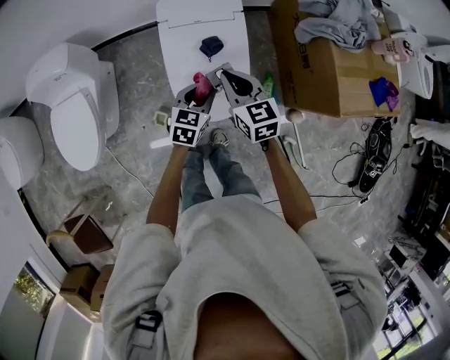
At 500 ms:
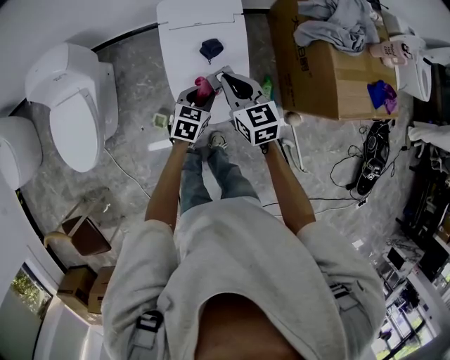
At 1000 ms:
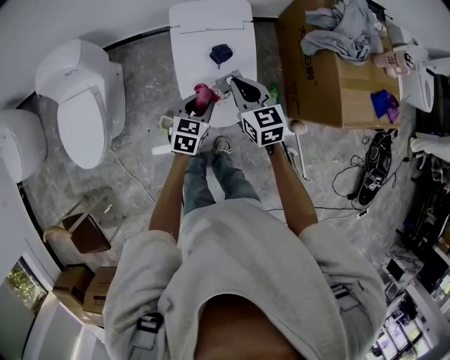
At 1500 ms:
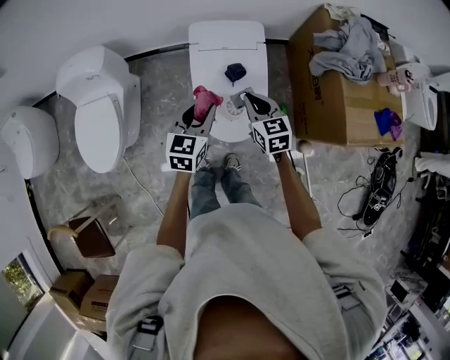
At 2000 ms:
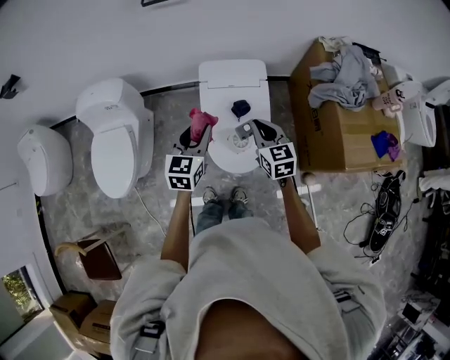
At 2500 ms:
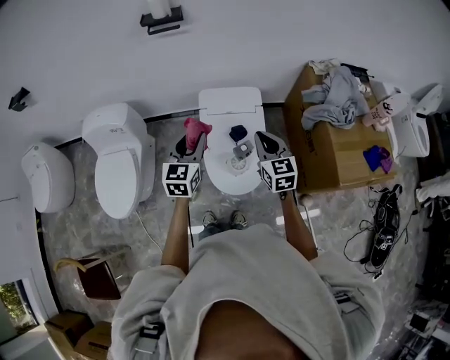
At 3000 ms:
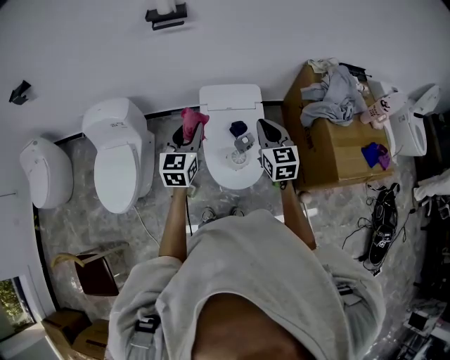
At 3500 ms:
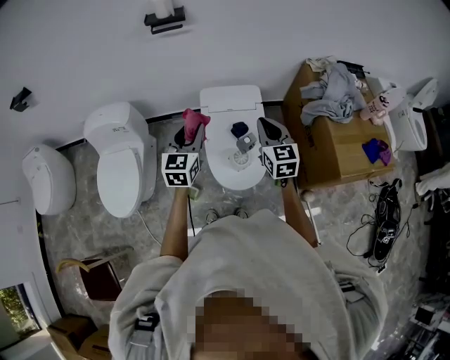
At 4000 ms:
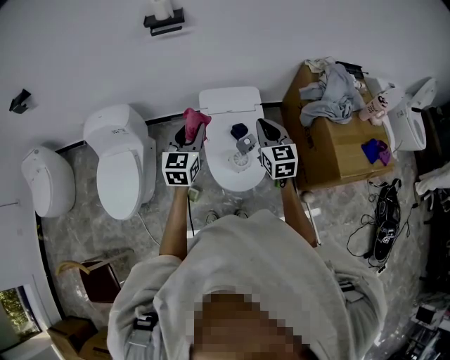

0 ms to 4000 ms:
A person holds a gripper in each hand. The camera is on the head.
0 ms to 2000 ms: The right gripper travels upward by approximately 5 cm, while the left gripper shifts about 20 cm upward and to the left, and swivels about 20 degrees.
2000 ms to 4000 ms: Both grippers move upward, some 10 cm.

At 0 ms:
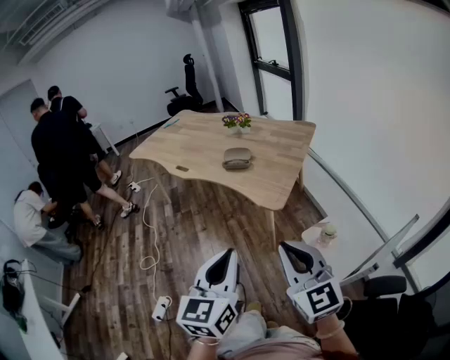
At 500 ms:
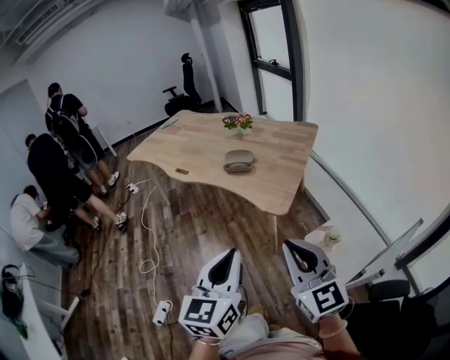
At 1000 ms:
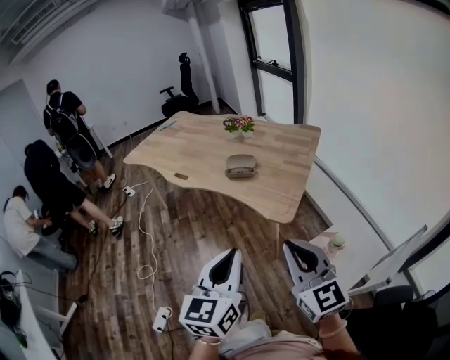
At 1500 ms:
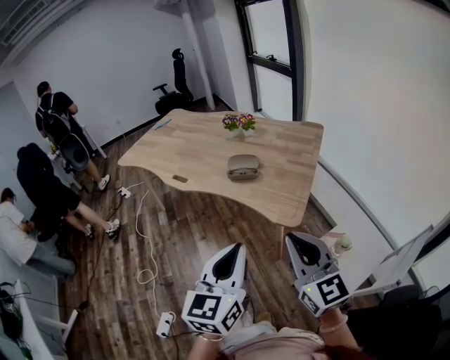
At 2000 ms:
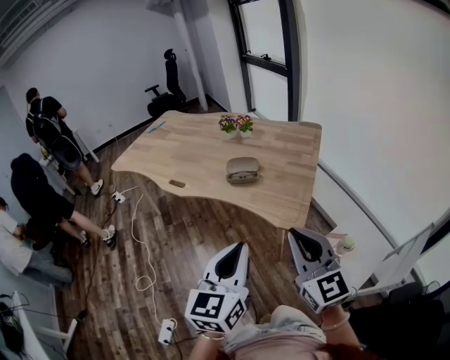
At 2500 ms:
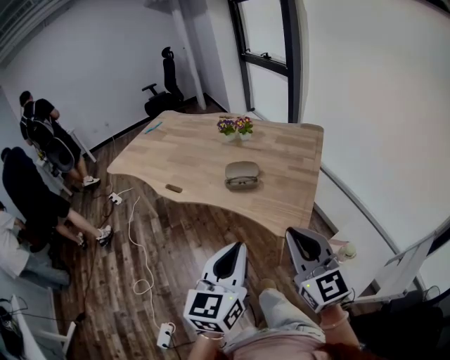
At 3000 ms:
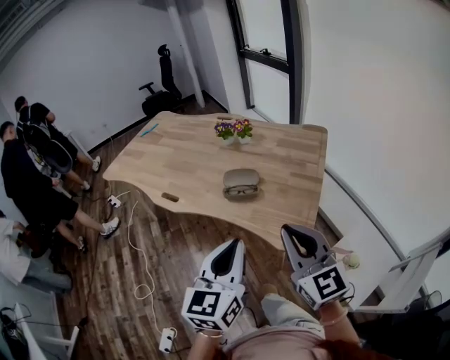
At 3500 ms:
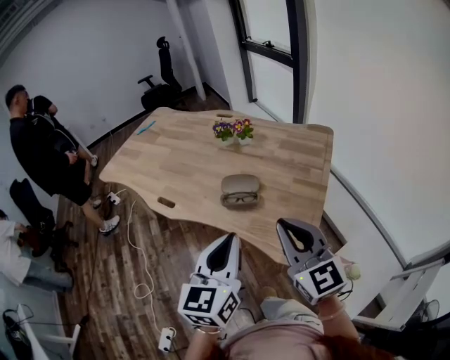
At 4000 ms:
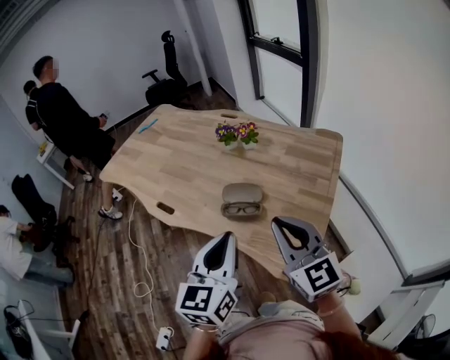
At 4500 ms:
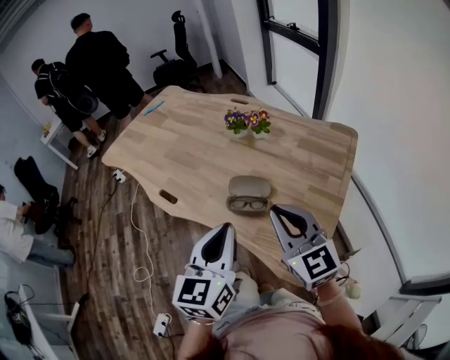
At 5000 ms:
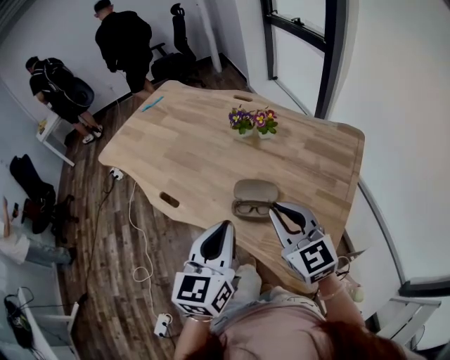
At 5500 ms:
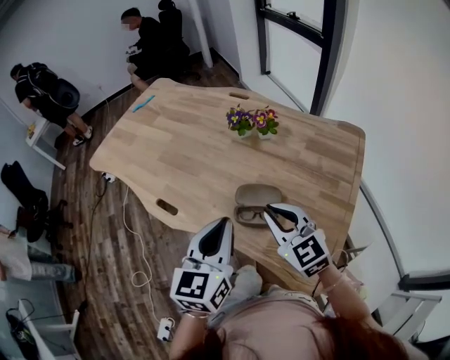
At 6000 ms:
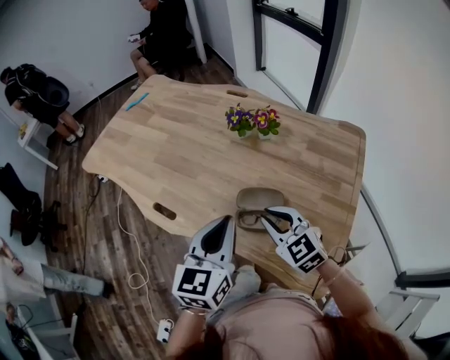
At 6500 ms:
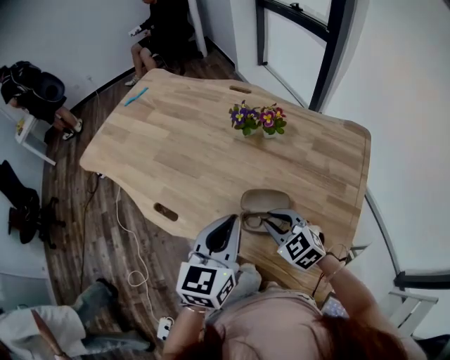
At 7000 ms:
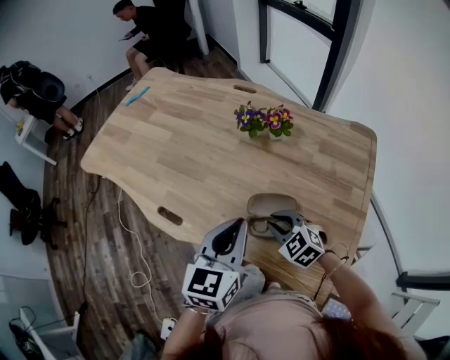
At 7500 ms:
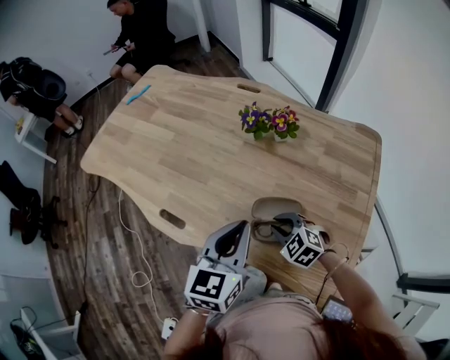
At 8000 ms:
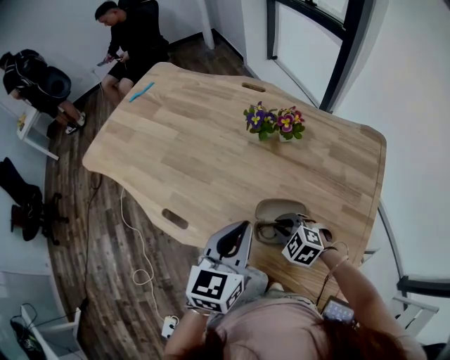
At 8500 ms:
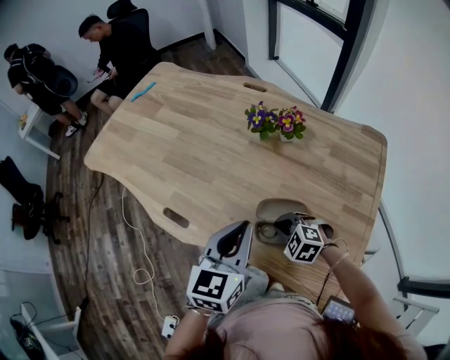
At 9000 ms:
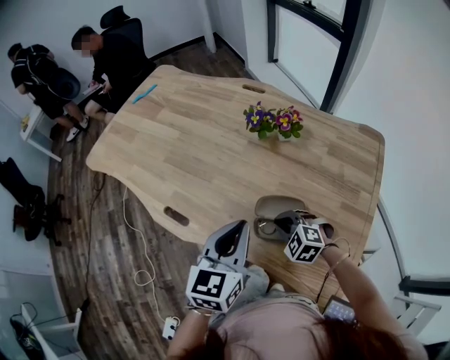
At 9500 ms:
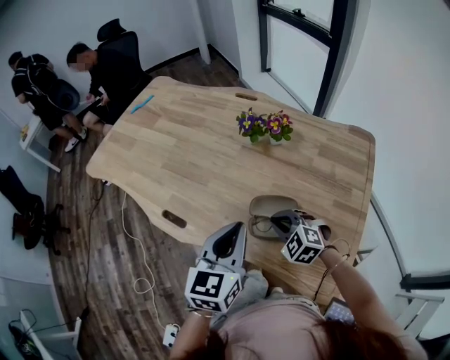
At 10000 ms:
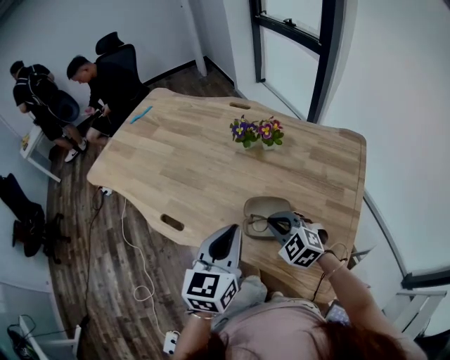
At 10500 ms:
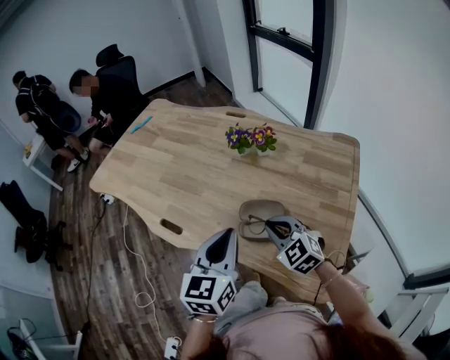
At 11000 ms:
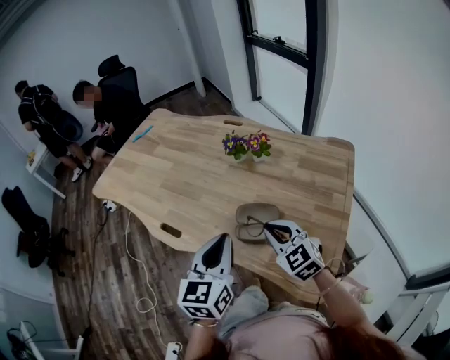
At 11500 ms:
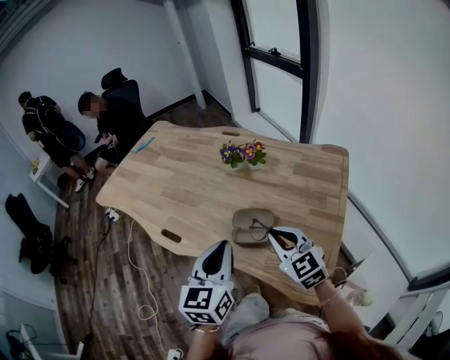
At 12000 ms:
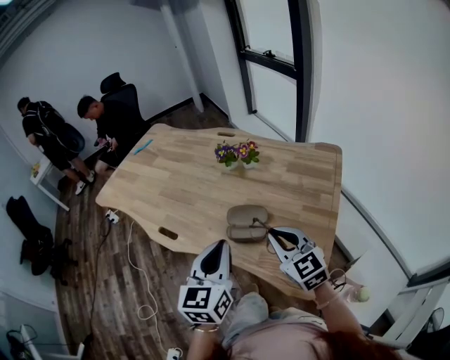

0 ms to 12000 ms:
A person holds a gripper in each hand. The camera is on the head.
0 ms to 2000 ms: The grippers both shift forward by some 20 cm.
2000 ms to 4000 ms: Both grippers travel together forward, approximately 30 cm.
4000 ms to 6000 ms: The left gripper goes roughly 15 cm forward. Meanwhile the right gripper shifts some 25 cm forward, downward and to the left, and turns by about 30 degrees.
6000 ms to 8000 ms: The right gripper travels downward by about 15 cm, and turns by approximately 30 degrees. Meanwhile the left gripper travels forward by approximately 5 cm.
8000 ms to 10000 ms: The right gripper travels upward by about 10 cm. Meanwhile the left gripper heads backward, covering some 5 cm.
10000 ms to 12000 ms: The right gripper travels upward, backward and to the right by approximately 20 cm, and rotates roughly 30 degrees. The left gripper moves backward, some 10 cm.

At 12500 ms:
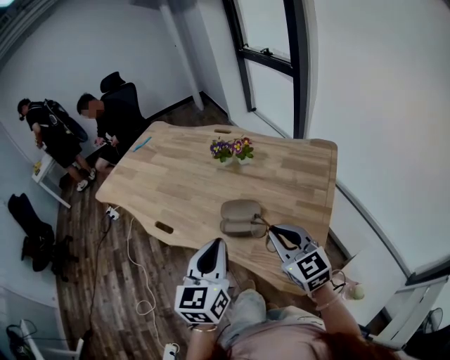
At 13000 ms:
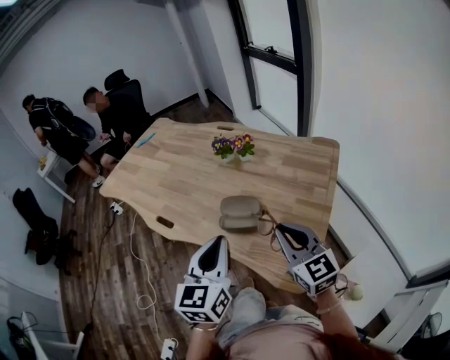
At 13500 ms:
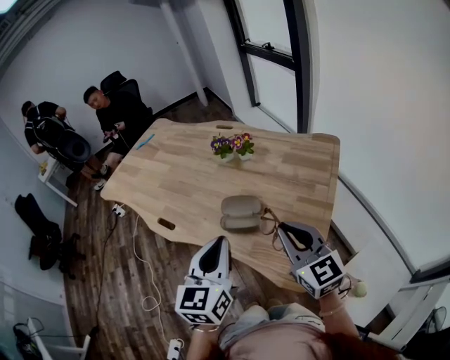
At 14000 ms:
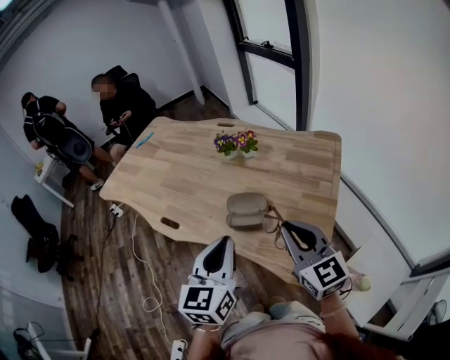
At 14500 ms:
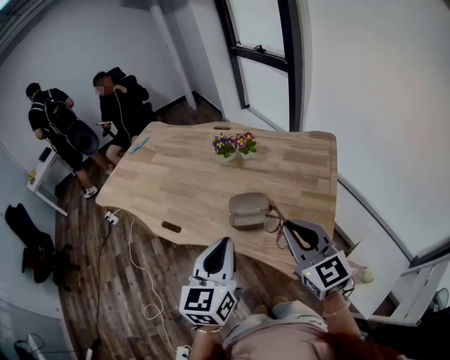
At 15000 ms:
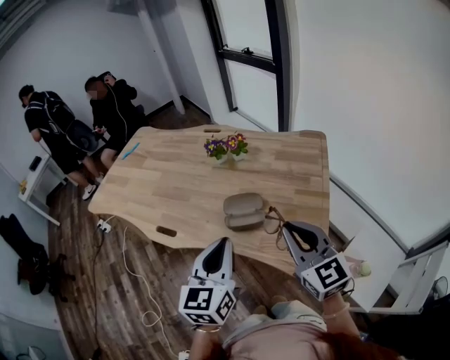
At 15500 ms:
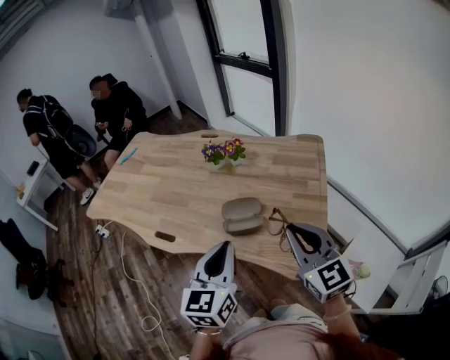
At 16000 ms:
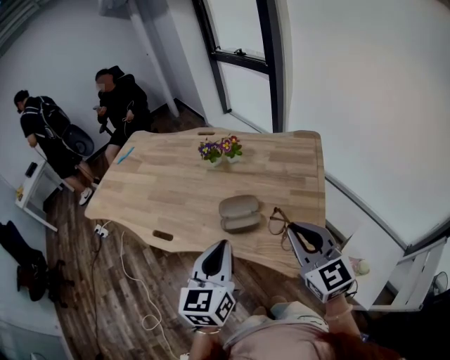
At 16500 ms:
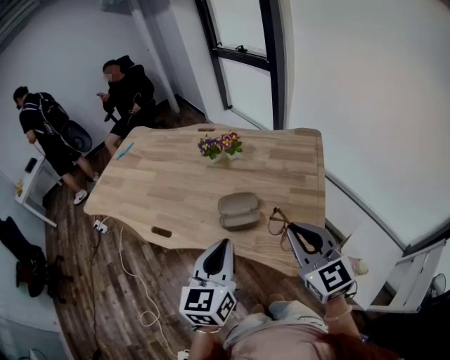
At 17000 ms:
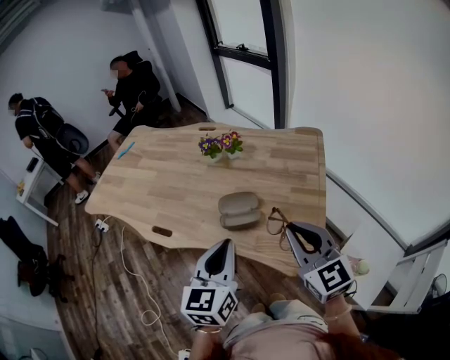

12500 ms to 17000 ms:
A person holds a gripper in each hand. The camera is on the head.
12500 ms to 14500 ms: The right gripper goes roughly 5 cm upward.
14500 ms to 17000 ms: The grippers move only a little.

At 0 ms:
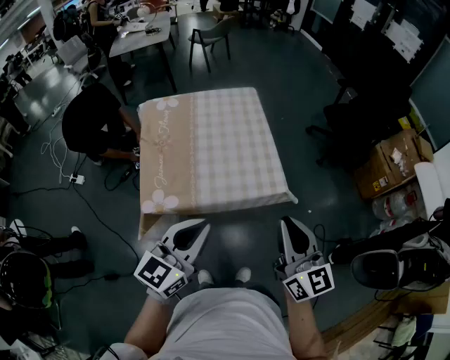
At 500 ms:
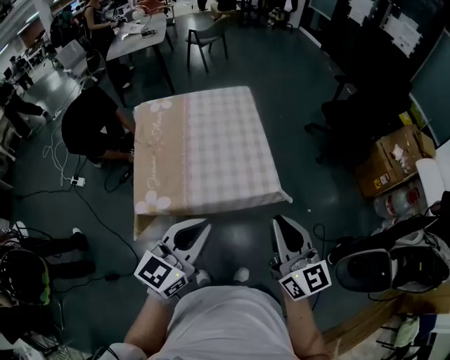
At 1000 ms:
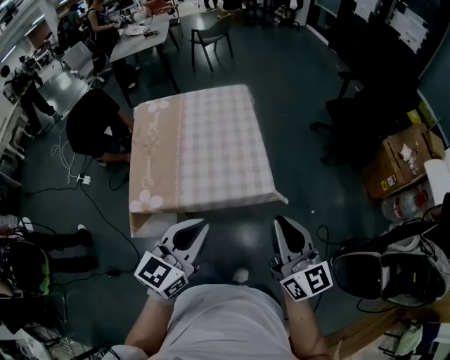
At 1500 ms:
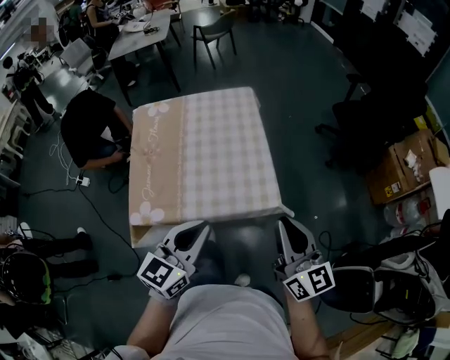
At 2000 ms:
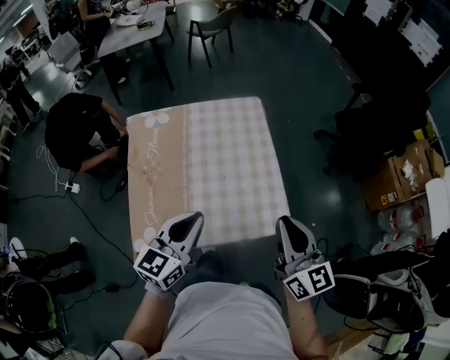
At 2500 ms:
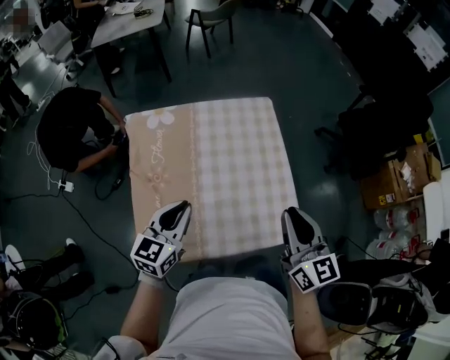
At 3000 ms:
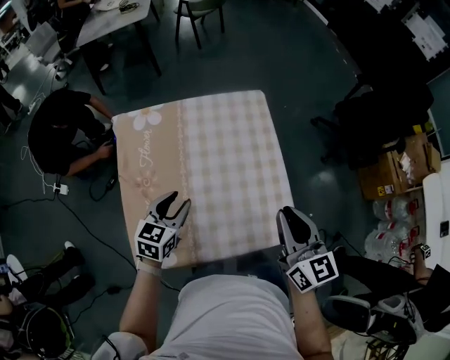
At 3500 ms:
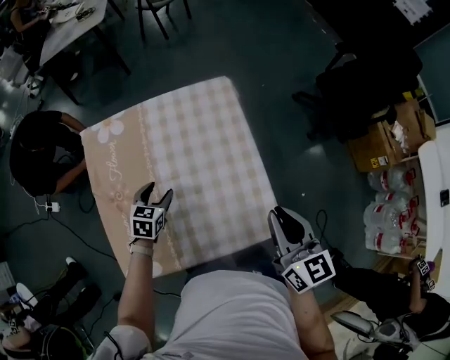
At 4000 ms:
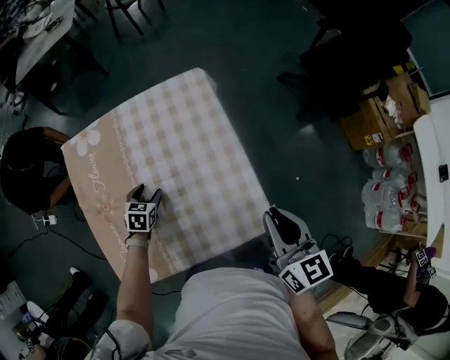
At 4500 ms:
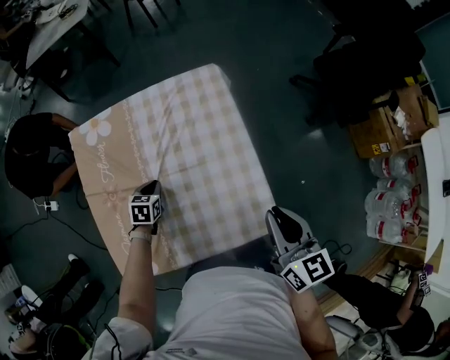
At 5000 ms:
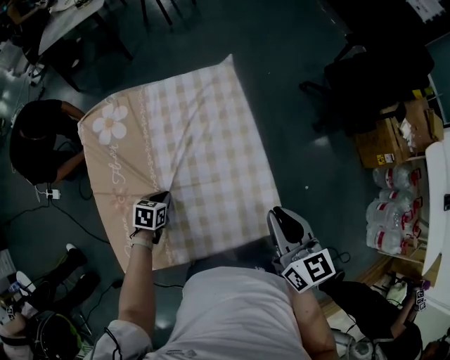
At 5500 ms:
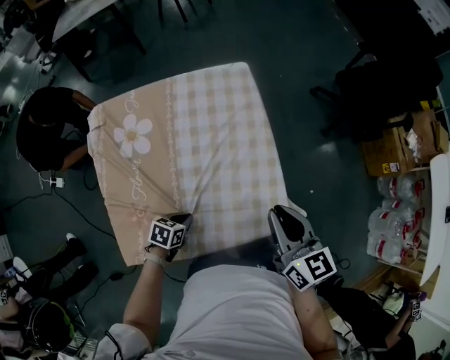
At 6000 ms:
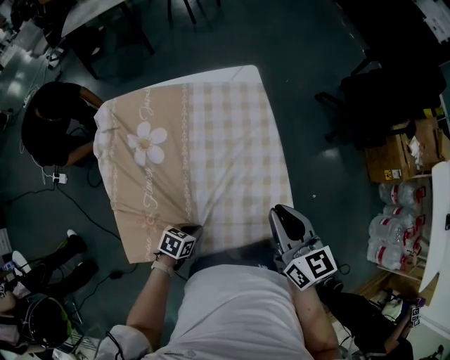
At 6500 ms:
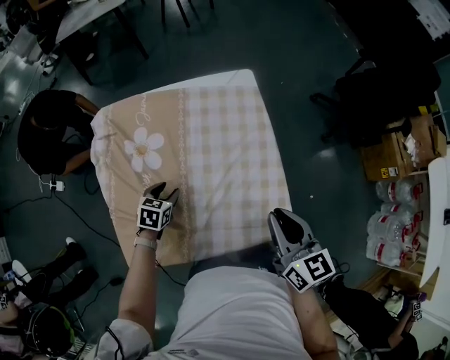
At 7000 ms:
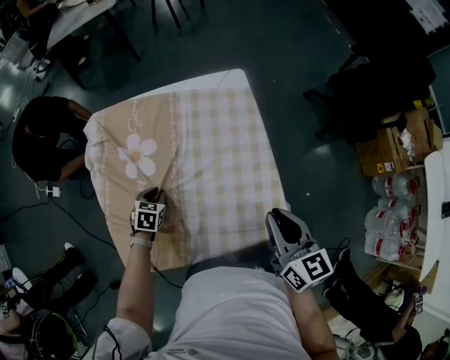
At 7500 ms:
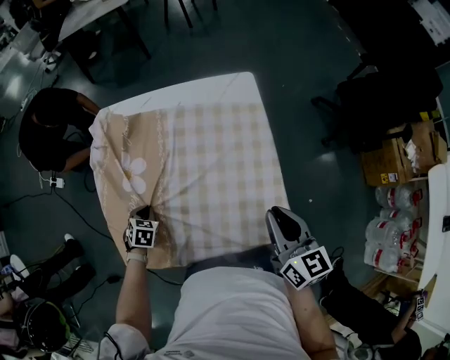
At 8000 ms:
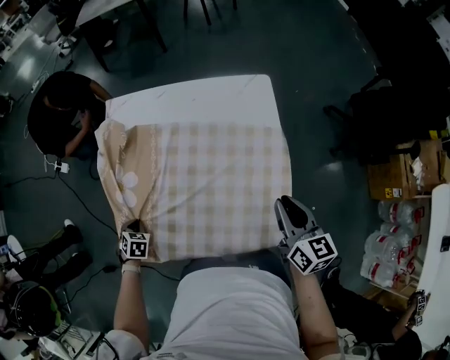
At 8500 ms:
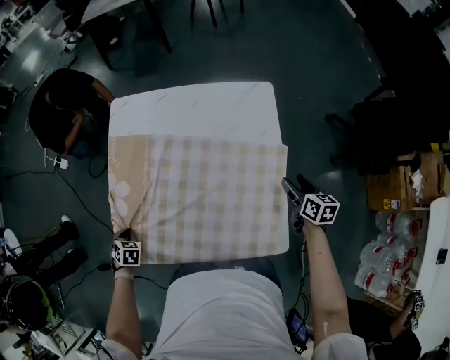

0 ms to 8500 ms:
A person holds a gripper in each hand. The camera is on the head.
0 ms to 2000 ms: Both grippers travel together forward, some 25 cm.
2000 ms to 4000 ms: The right gripper moves forward and downward, about 15 cm, and swivels some 20 degrees, while the left gripper heads downward and forward, covering approximately 40 cm, points its fingers some 40 degrees further downward, and opens up.
4000 ms to 6500 ms: The right gripper travels to the left by some 10 cm. The left gripper moves some 20 cm backward and comes back, and closes, then opens again.
6500 ms to 8500 ms: The left gripper ends up some 25 cm from where it was, swivels approximately 40 degrees, and closes its fingers. Meanwhile the right gripper changes place by some 30 cm, changes its angle by about 20 degrees, and opens up.
